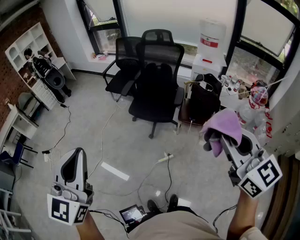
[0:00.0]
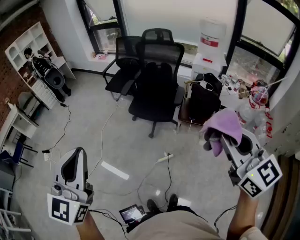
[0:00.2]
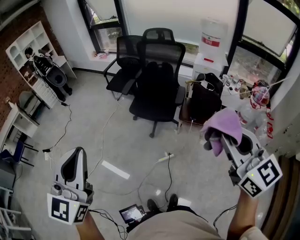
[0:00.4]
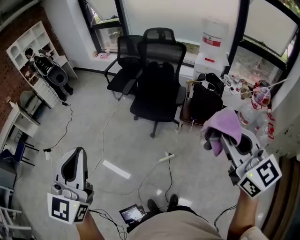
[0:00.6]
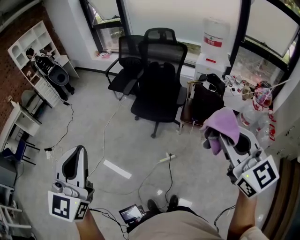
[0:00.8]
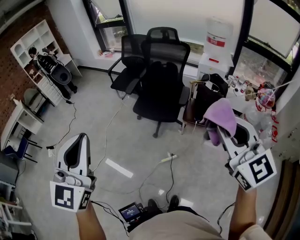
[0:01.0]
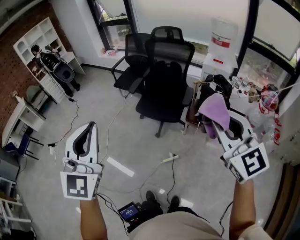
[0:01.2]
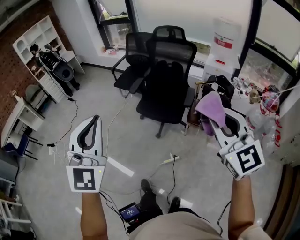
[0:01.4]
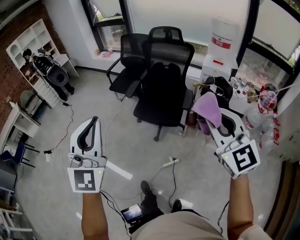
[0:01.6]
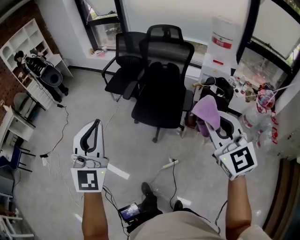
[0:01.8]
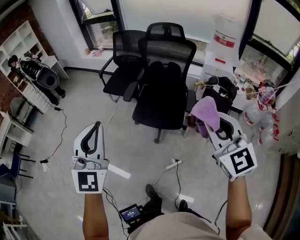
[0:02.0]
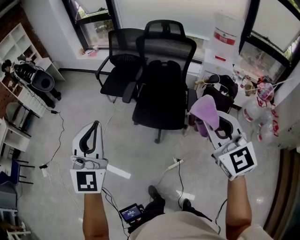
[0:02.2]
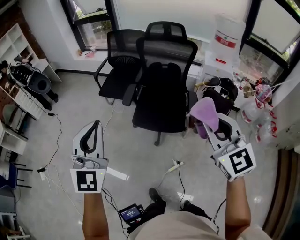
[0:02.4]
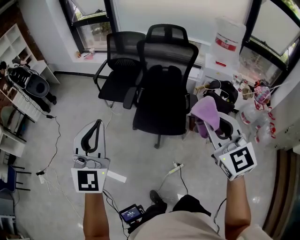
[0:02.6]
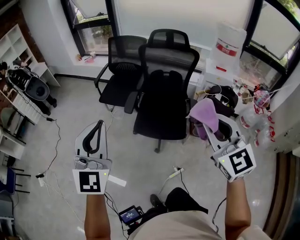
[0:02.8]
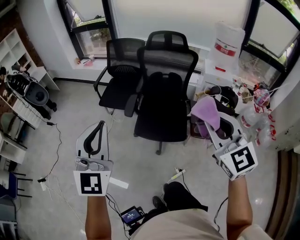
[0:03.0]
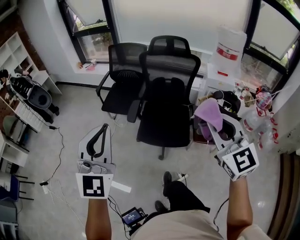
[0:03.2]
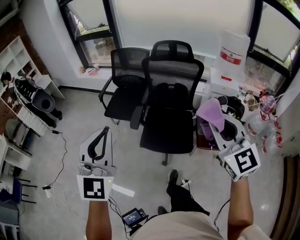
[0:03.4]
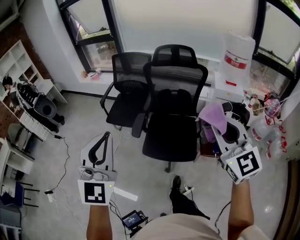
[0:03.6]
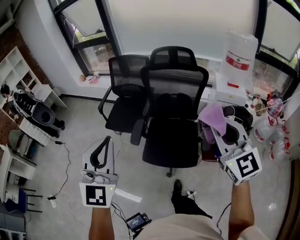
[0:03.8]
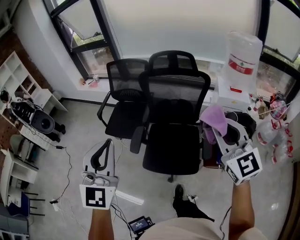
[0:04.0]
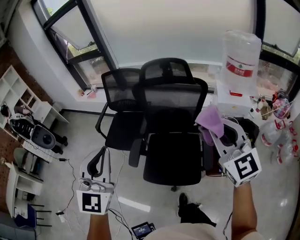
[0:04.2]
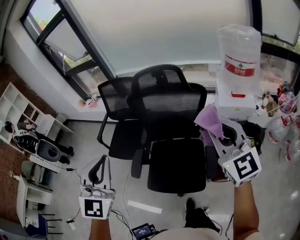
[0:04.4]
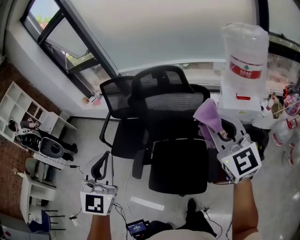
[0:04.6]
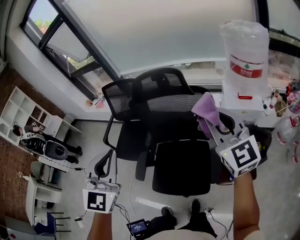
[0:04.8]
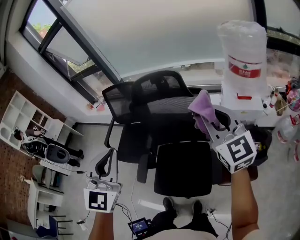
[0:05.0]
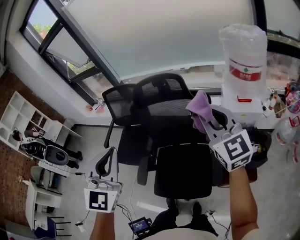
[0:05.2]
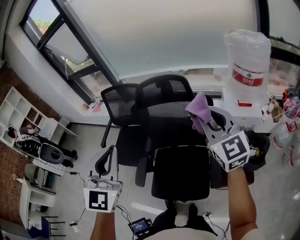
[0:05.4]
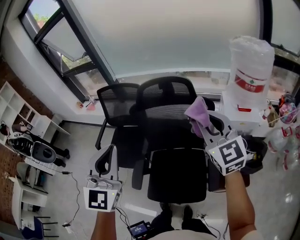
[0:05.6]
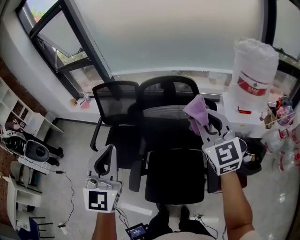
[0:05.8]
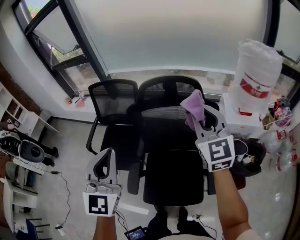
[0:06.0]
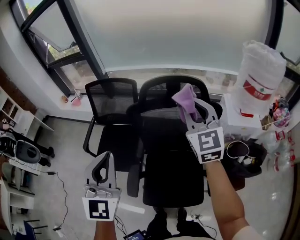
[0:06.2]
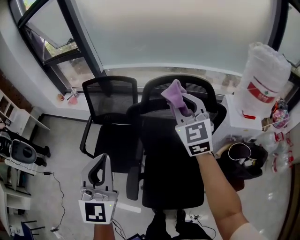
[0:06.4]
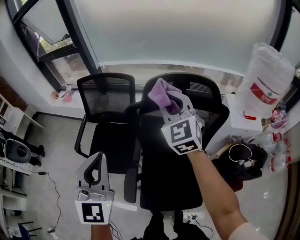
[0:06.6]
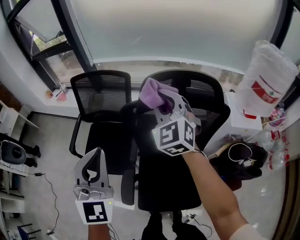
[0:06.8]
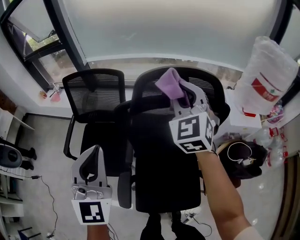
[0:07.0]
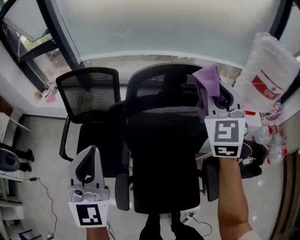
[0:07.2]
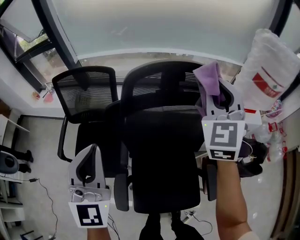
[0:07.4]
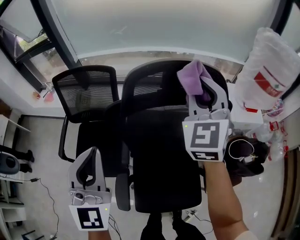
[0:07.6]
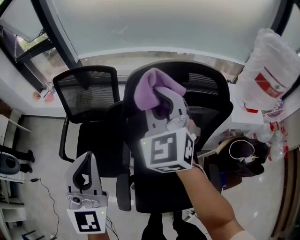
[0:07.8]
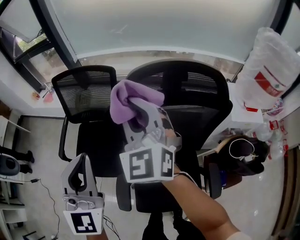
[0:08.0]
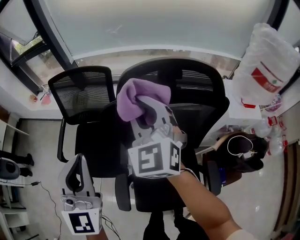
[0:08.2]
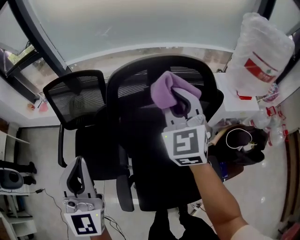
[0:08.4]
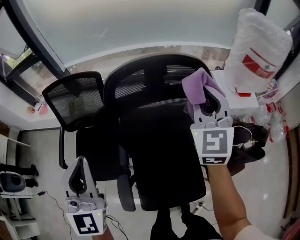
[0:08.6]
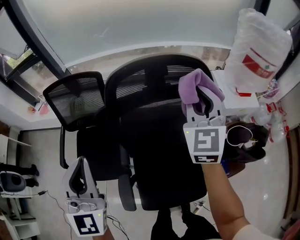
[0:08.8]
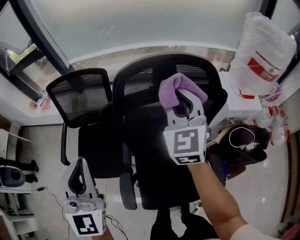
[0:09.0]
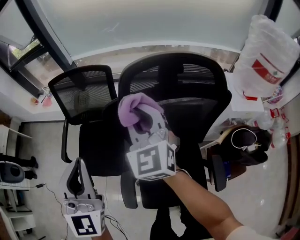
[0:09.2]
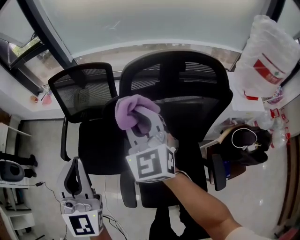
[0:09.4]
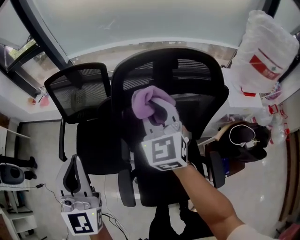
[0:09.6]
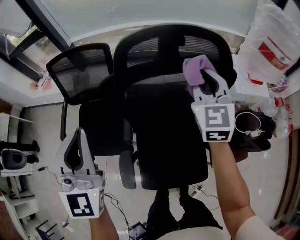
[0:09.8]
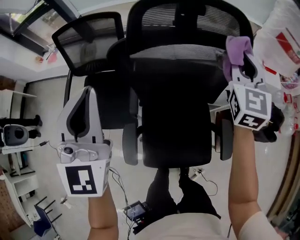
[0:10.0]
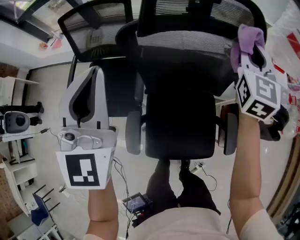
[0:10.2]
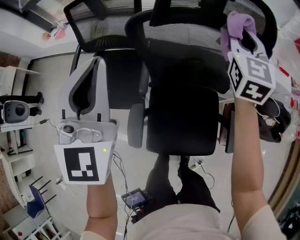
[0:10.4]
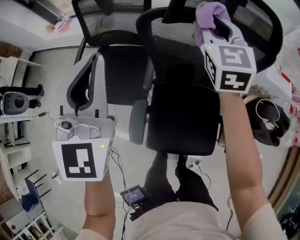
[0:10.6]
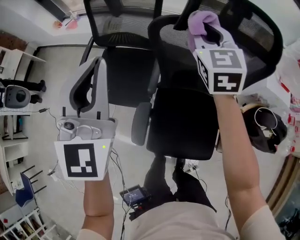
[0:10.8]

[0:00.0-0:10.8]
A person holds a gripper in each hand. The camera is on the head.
0:00.0 to 0:01.6: The grippers both shift forward by some 15 cm.
0:01.6 to 0:03.0: The two grippers go some 30 cm forward and to the left.
0:03.0 to 0:04.6: Both grippers are carried forward and to the right, about 50 cm.
0:04.6 to 0:06.2: The left gripper shifts approximately 20 cm forward, to the left and downward. The right gripper heads forward and to the left, covering about 30 cm.
0:06.2 to 0:07.8: The right gripper swings left and right, about 20 cm each way, with 2 reversals; the left gripper heads forward and downward, covering approximately 15 cm.
0:07.8 to 0:09.2: The right gripper moves left and right over about 25 cm, changing direction 2 times.
0:09.2 to 0:10.8: The right gripper reaches about 25 cm to the right, then returns, while the left gripper changes place by approximately 5 cm.

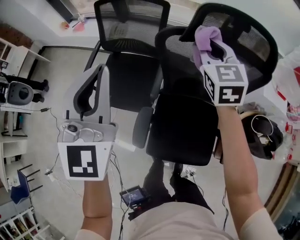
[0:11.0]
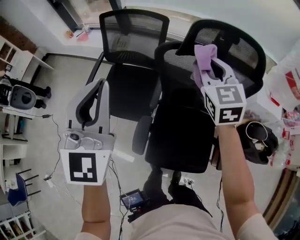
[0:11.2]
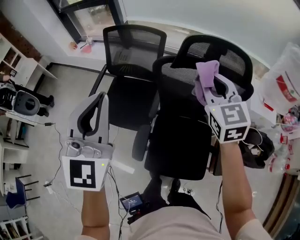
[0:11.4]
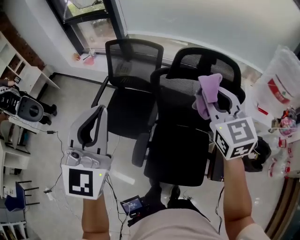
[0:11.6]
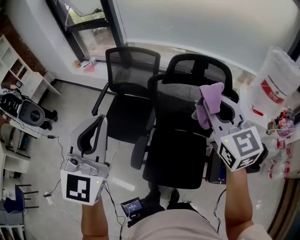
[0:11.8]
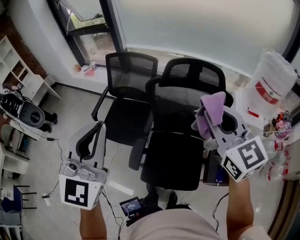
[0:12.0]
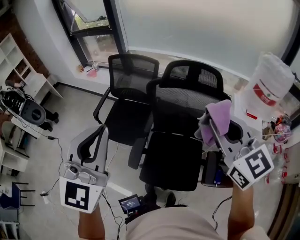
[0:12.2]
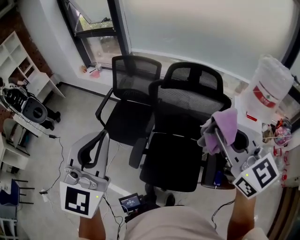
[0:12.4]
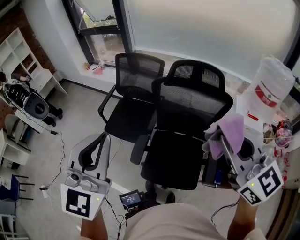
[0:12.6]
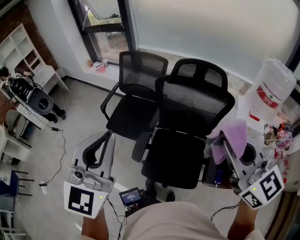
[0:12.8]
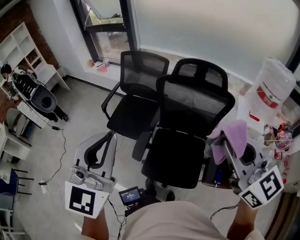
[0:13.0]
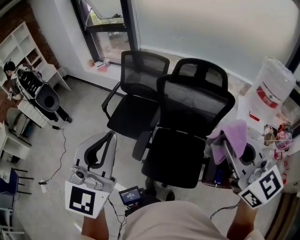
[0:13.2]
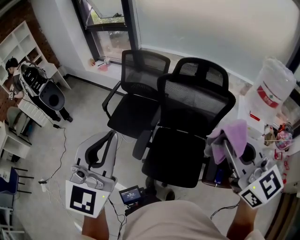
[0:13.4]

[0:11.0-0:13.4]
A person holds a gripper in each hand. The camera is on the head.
0:11.0 to 0:12.2: Both grippers travel together backward and upward, roughly 30 cm. The right gripper changes its angle by about 20 degrees.
0:12.2 to 0:13.4: The grippers both shift backward by some 10 cm.

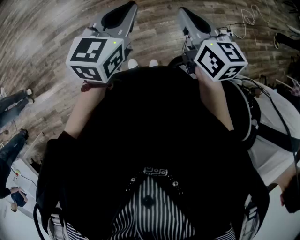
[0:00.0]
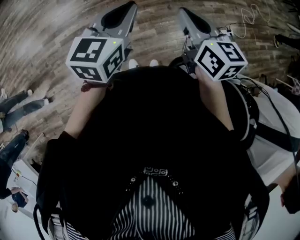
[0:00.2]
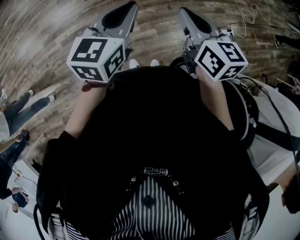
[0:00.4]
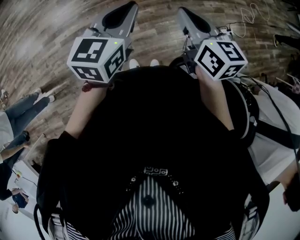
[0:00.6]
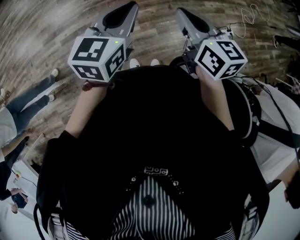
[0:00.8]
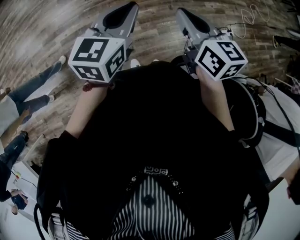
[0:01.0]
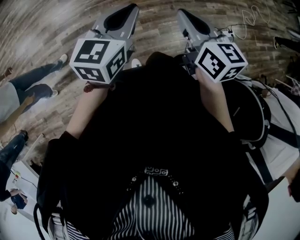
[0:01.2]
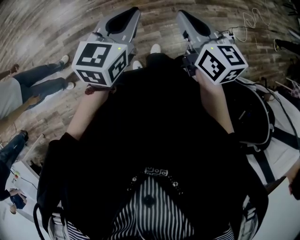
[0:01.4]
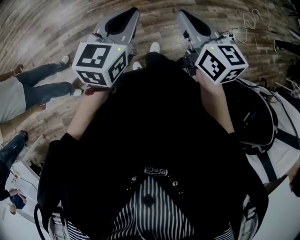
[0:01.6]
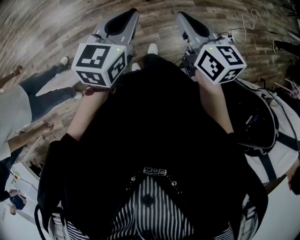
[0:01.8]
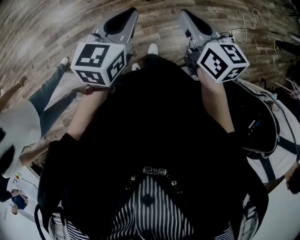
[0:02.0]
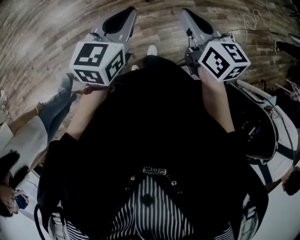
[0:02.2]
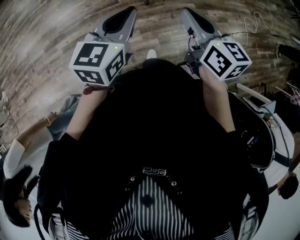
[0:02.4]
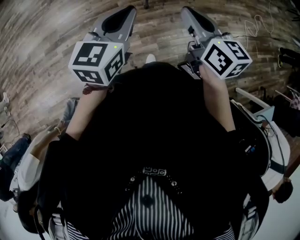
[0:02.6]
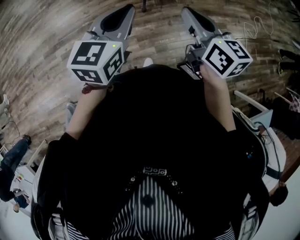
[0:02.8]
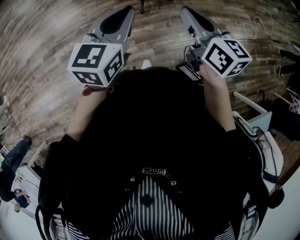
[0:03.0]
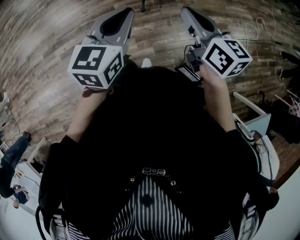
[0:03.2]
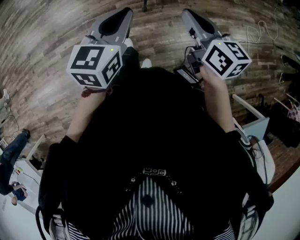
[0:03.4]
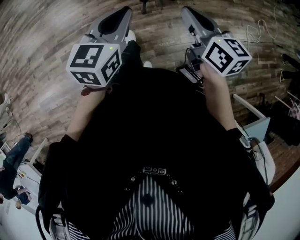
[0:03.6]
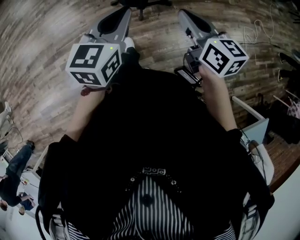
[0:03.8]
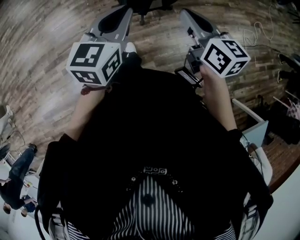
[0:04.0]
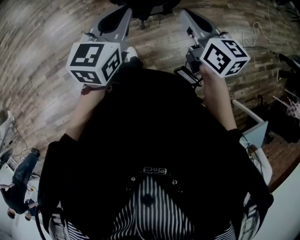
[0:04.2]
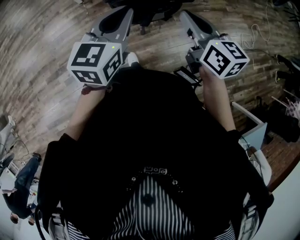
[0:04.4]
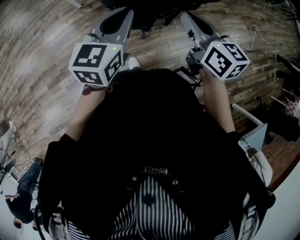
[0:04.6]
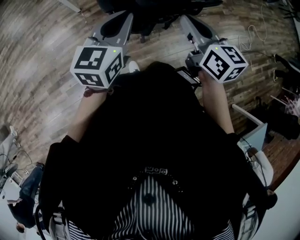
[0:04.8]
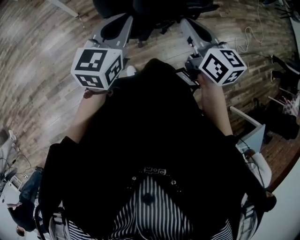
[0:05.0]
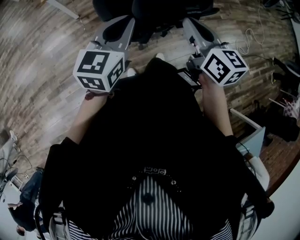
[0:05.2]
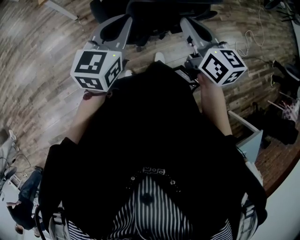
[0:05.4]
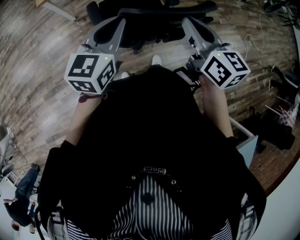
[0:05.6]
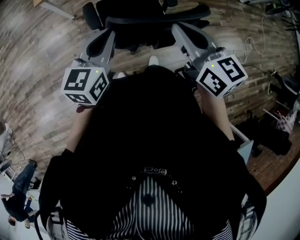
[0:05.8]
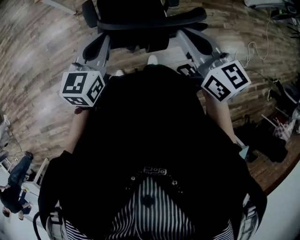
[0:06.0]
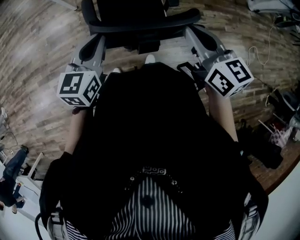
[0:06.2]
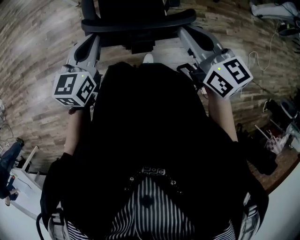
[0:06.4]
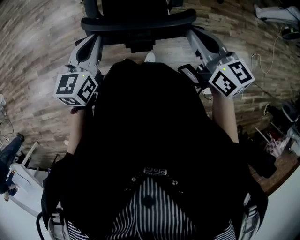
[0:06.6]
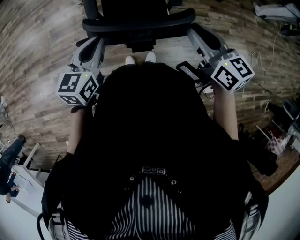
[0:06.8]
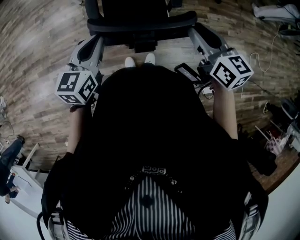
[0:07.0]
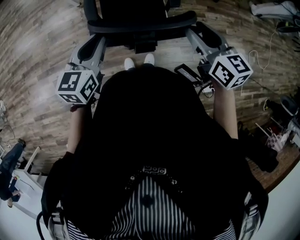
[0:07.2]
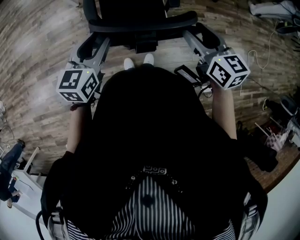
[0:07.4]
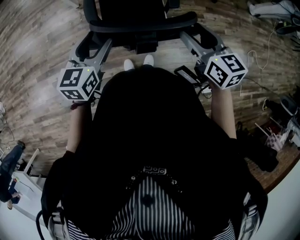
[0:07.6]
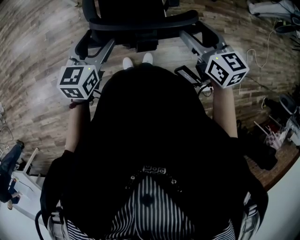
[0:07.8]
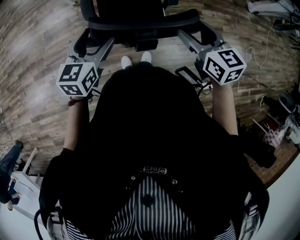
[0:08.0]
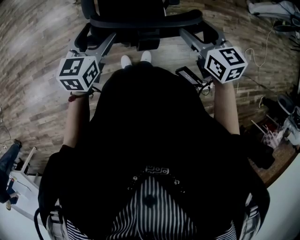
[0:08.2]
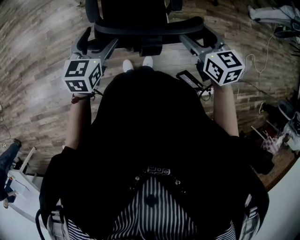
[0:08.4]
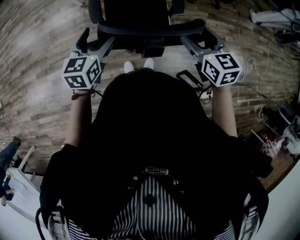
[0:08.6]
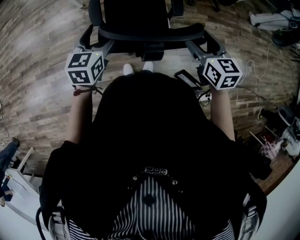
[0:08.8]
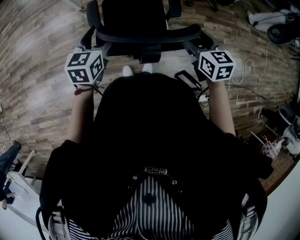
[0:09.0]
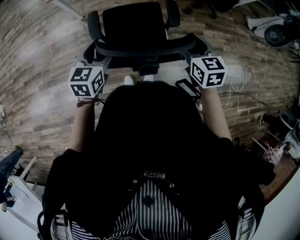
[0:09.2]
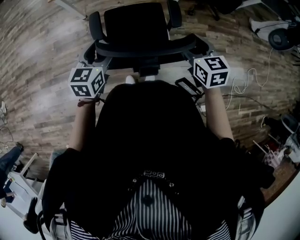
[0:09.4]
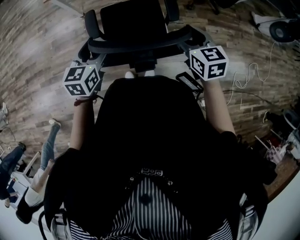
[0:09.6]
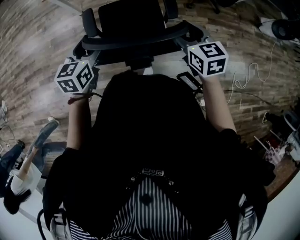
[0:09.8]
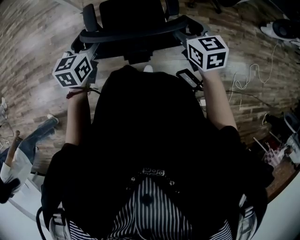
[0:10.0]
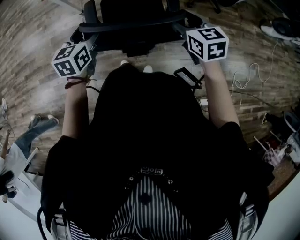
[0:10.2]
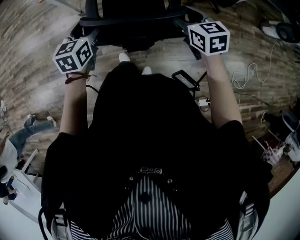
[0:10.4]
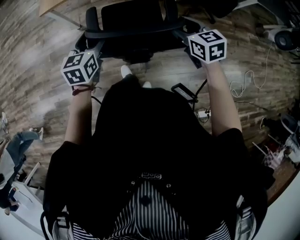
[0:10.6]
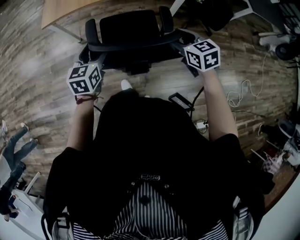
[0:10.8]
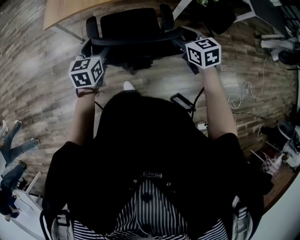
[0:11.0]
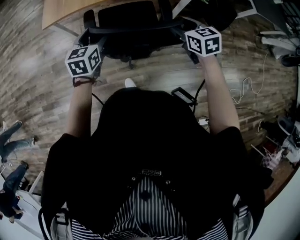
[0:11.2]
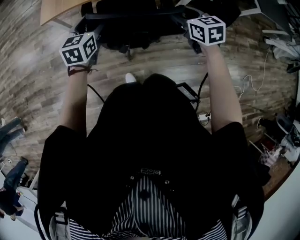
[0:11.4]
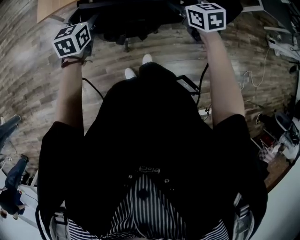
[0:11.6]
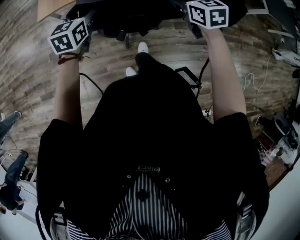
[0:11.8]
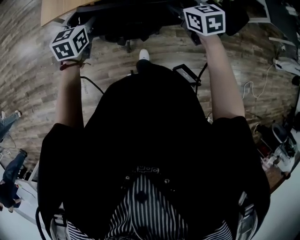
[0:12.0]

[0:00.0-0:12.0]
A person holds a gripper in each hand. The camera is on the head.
0:00.0 to 0:01.6: The grippers make only small movements.
0:01.6 to 0:03.0: The right gripper shifts roughly 30 cm forward and to the right. The left gripper shifts about 25 cm forward.
0:03.0 to 0:04.4: The two grippers go roughly 30 cm forward.
0:04.4 to 0:06.0: The grippers both shift forward and to the right by some 20 cm.
0:06.0 to 0:07.6: The left gripper opens up. The right gripper heads to the right and downward, covering roughly 10 cm, and opens its fingers.
0:07.6 to 0:09.0: The right gripper heads downward, covering approximately 5 cm. Meanwhile the left gripper shifts about 5 cm forward.
0:09.0 to 0:10.4: The grippers both shift forward by some 10 cm.
0:10.4 to 0:12.0: Both grippers move forward, some 40 cm.
